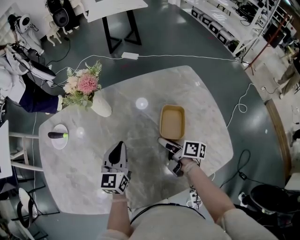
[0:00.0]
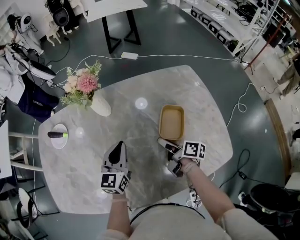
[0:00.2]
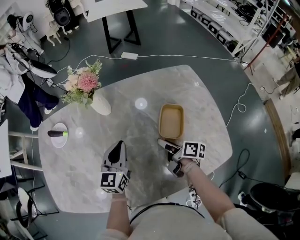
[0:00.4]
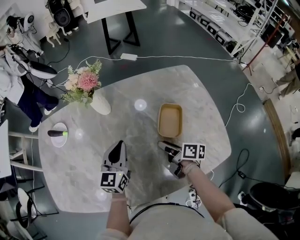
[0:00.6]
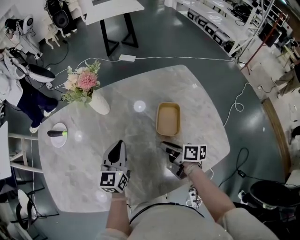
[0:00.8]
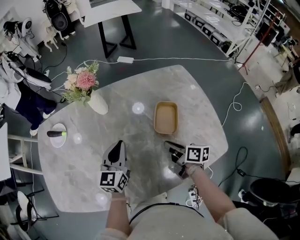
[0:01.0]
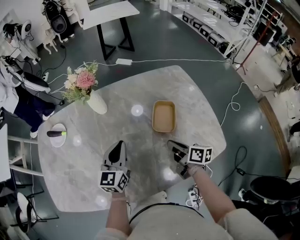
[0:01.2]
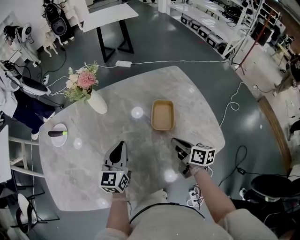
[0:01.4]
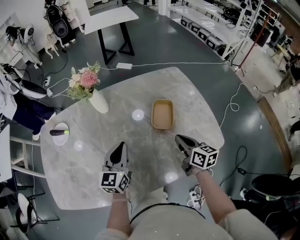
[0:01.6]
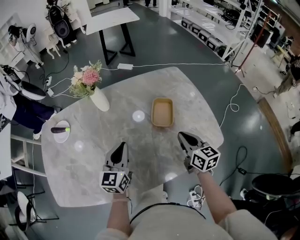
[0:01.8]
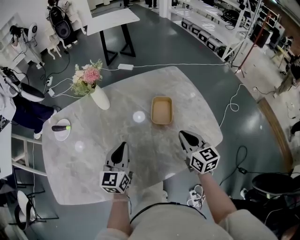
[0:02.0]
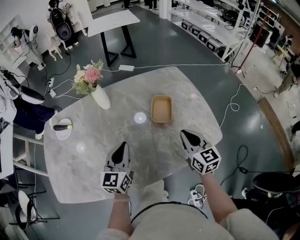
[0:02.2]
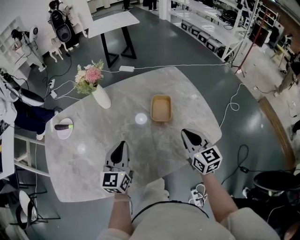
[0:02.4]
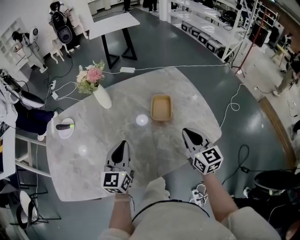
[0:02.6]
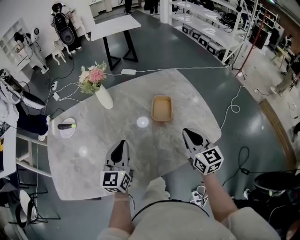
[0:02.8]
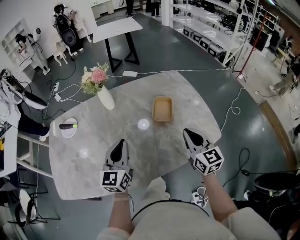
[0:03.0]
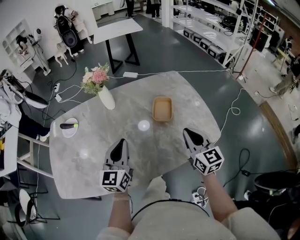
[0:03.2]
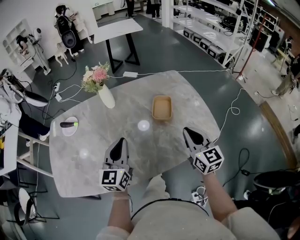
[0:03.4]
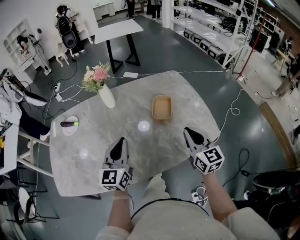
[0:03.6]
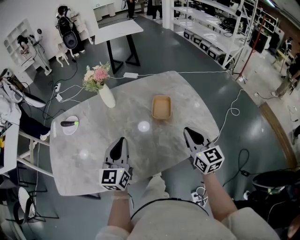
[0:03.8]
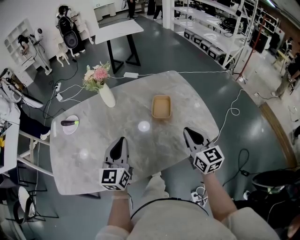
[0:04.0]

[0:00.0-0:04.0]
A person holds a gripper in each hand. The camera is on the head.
0:00.0 to 0:01.4: The left gripper moves backward, some 5 cm; the right gripper is displaced backward and to the right by some 10 cm, rotates about 30 degrees, and closes its fingers.
0:01.4 to 0:02.6: The left gripper moves backward, roughly 10 cm, while the right gripper travels upward and backward by approximately 15 cm, and rotates around the line of its fingers by approximately 40 degrees, counterclockwise from behind.
0:02.6 to 0:04.0: The grippers move only a little.

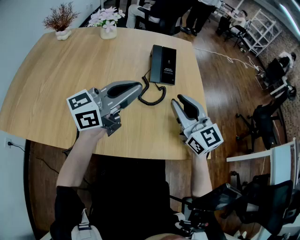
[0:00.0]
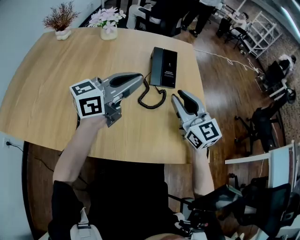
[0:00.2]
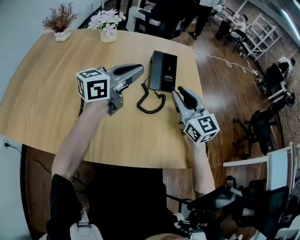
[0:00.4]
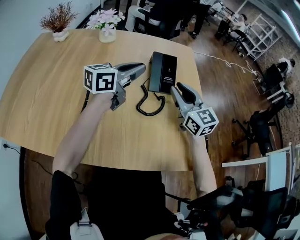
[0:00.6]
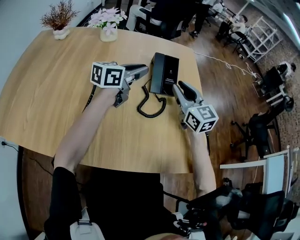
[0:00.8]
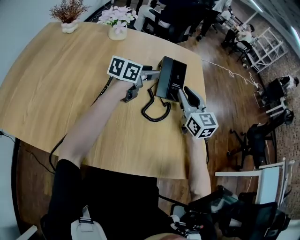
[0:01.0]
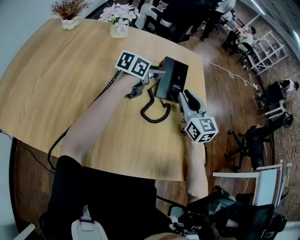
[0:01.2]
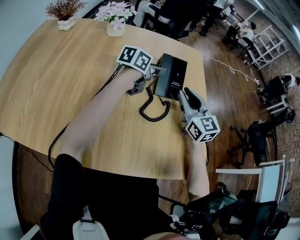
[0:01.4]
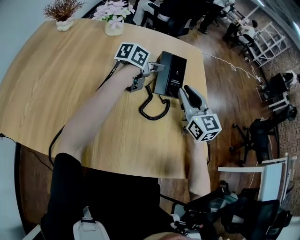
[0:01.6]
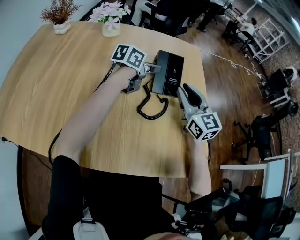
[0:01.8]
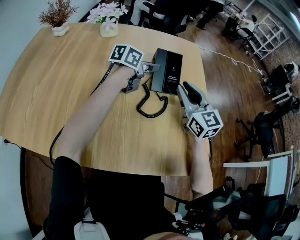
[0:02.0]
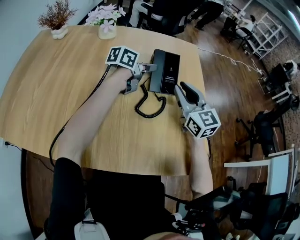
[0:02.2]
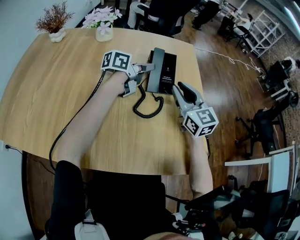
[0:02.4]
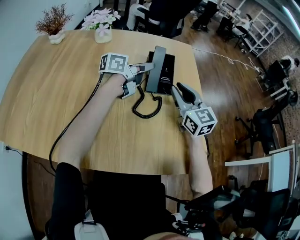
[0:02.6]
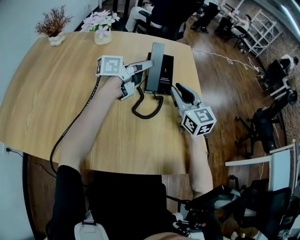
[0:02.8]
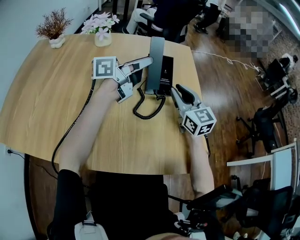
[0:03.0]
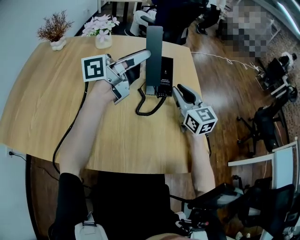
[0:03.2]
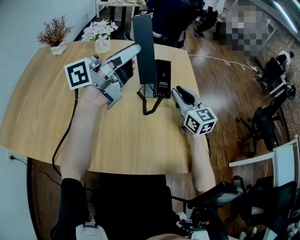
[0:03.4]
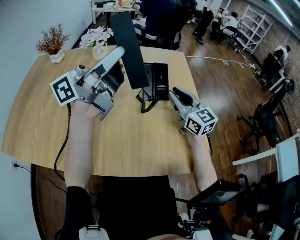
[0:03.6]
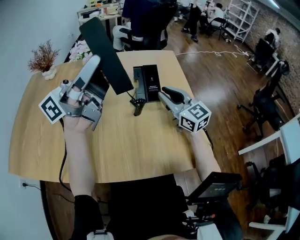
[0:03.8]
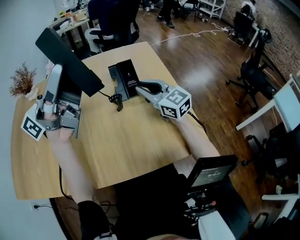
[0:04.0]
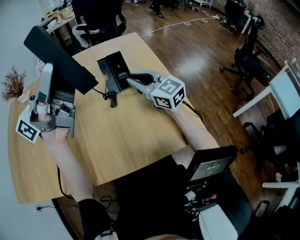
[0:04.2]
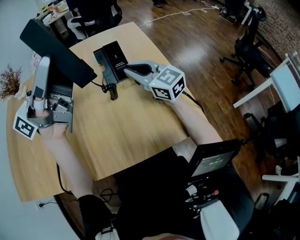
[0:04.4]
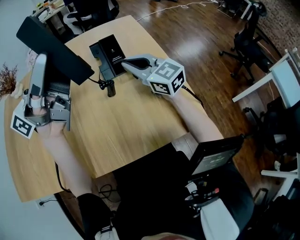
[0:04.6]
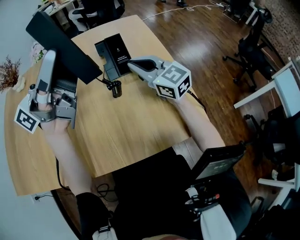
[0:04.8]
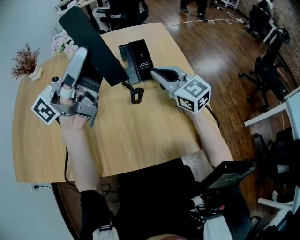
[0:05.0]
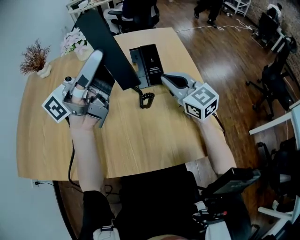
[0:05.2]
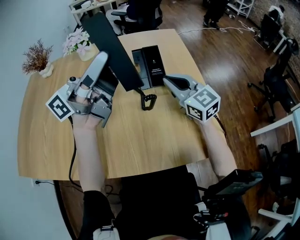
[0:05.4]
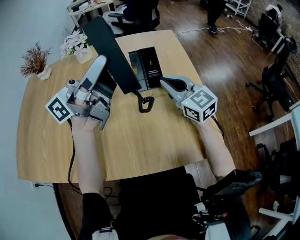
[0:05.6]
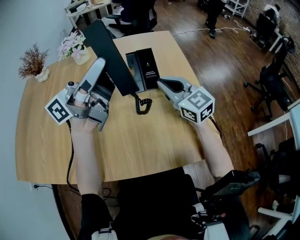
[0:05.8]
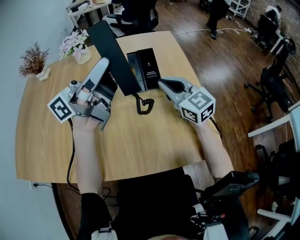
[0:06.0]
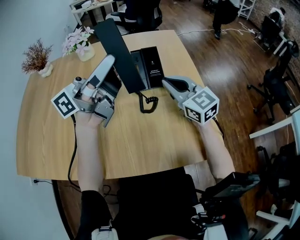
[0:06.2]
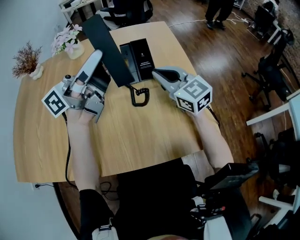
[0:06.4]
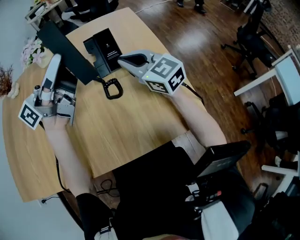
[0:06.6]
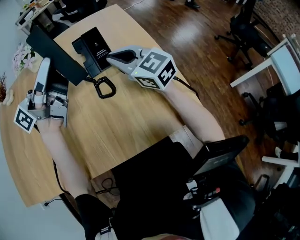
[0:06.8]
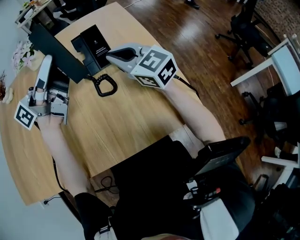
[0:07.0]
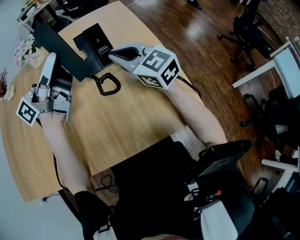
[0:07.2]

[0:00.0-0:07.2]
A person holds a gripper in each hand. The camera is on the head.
0:00.0 to 0:01.4: The left gripper travels forward and downward by approximately 30 cm, points its fingers some 30 degrees further downward, and opens, while the right gripper travels forward by about 15 cm.
0:01.4 to 0:02.8: The left gripper moves upward, about 5 cm, swivels about 30 degrees, and closes its fingers.
0:02.8 to 0:04.4: The left gripper is displaced upward and backward by roughly 30 cm, and points its fingers roughly 30 degrees further upward.
0:04.4 to 0:05.8: The left gripper travels downward by some 5 cm.
0:05.8 to 0:07.2: The left gripper travels downward by some 5 cm.

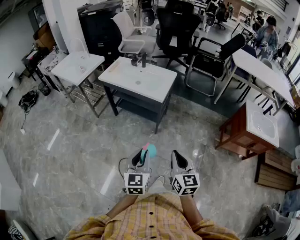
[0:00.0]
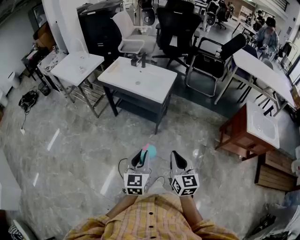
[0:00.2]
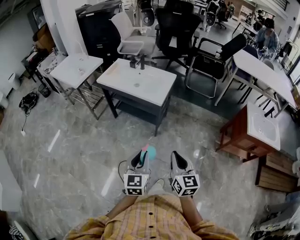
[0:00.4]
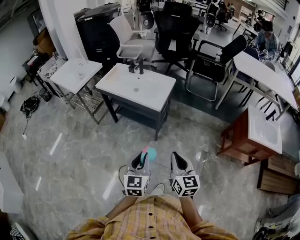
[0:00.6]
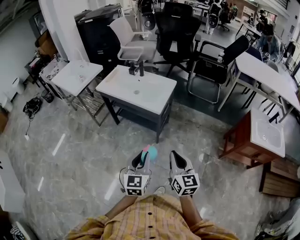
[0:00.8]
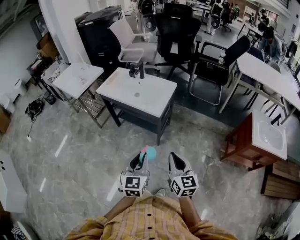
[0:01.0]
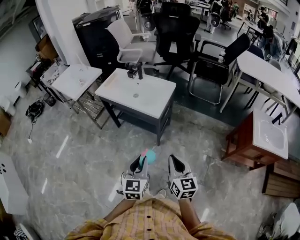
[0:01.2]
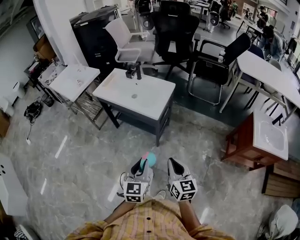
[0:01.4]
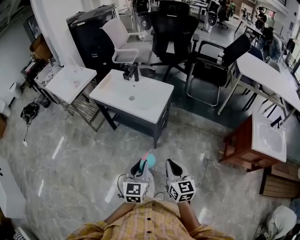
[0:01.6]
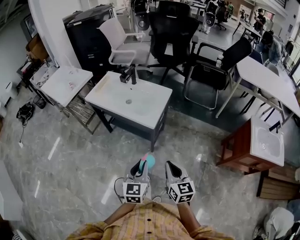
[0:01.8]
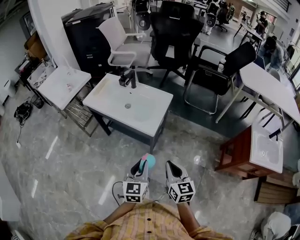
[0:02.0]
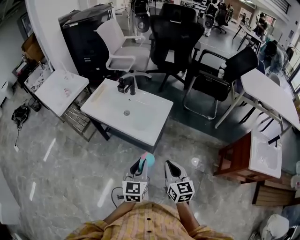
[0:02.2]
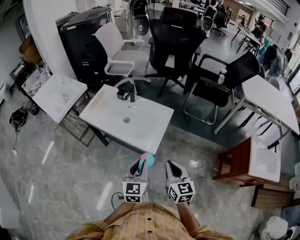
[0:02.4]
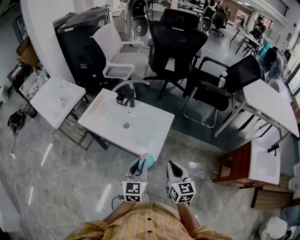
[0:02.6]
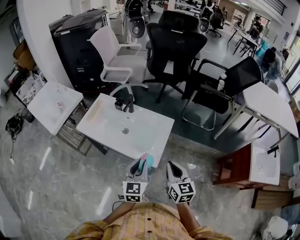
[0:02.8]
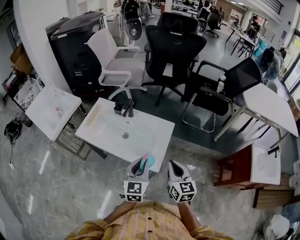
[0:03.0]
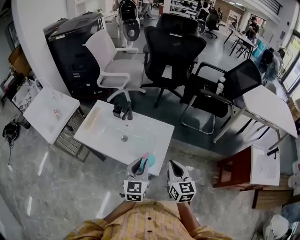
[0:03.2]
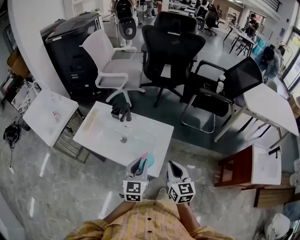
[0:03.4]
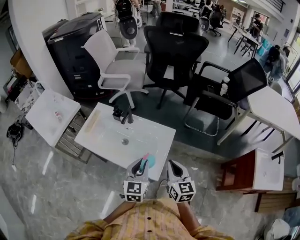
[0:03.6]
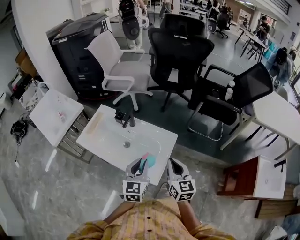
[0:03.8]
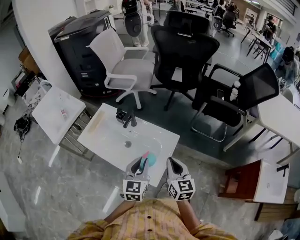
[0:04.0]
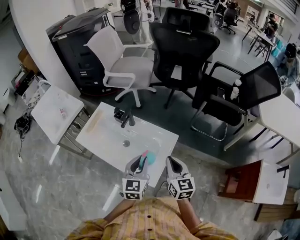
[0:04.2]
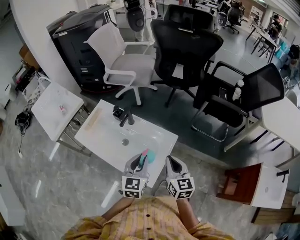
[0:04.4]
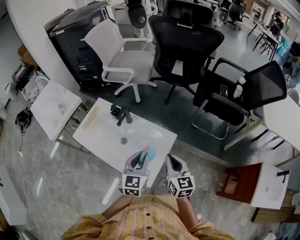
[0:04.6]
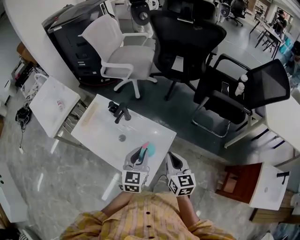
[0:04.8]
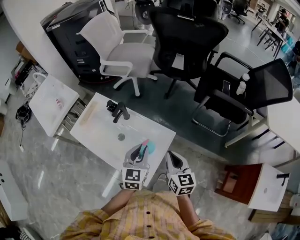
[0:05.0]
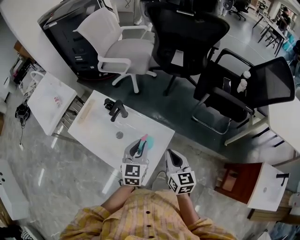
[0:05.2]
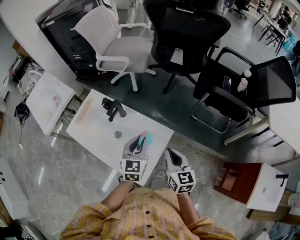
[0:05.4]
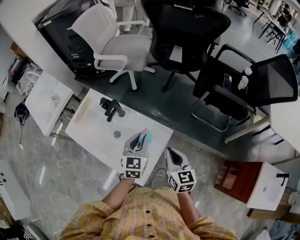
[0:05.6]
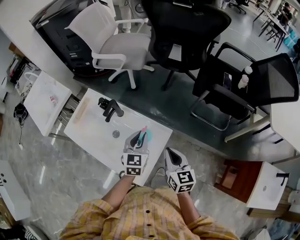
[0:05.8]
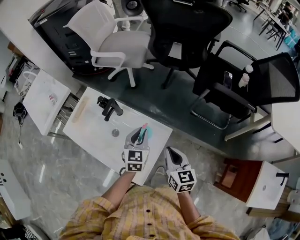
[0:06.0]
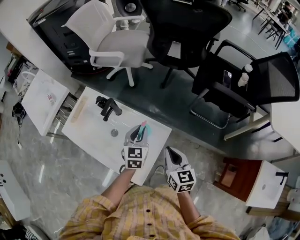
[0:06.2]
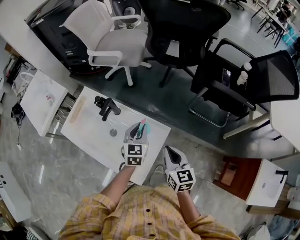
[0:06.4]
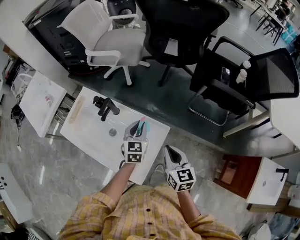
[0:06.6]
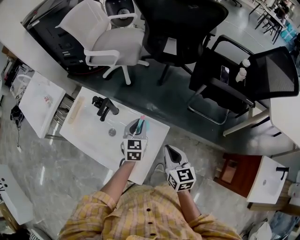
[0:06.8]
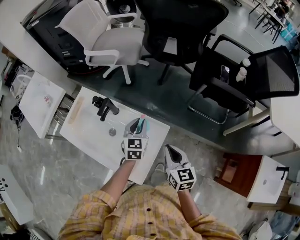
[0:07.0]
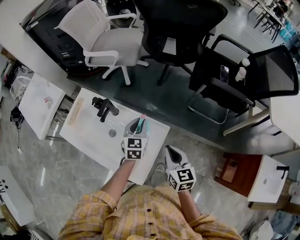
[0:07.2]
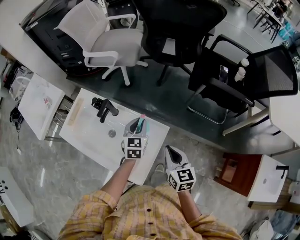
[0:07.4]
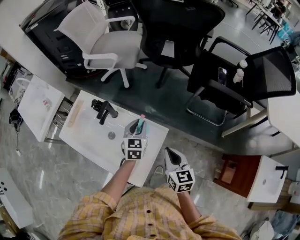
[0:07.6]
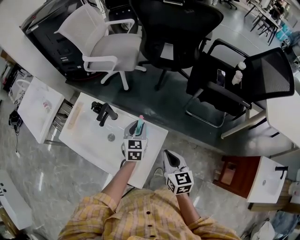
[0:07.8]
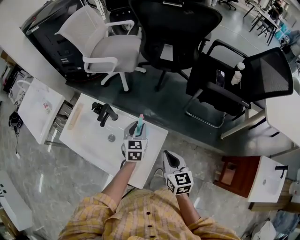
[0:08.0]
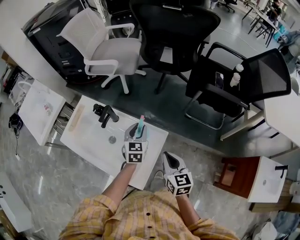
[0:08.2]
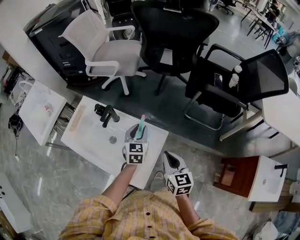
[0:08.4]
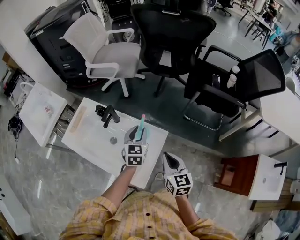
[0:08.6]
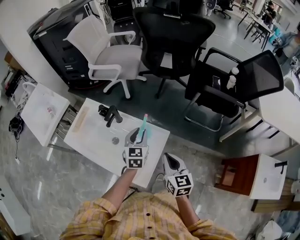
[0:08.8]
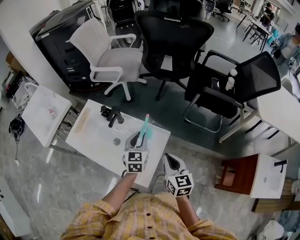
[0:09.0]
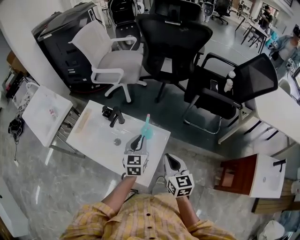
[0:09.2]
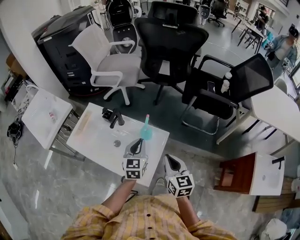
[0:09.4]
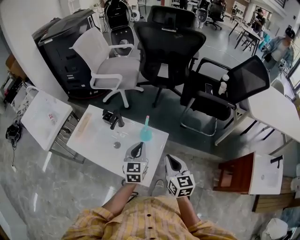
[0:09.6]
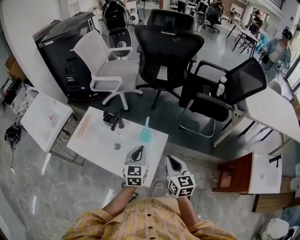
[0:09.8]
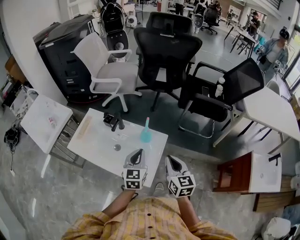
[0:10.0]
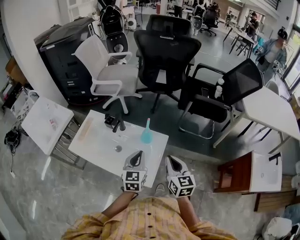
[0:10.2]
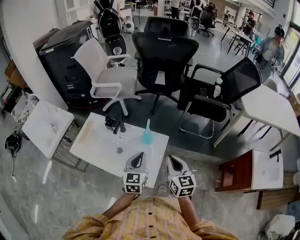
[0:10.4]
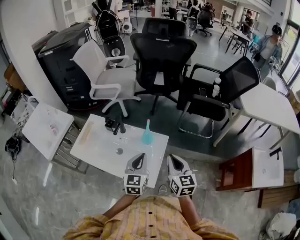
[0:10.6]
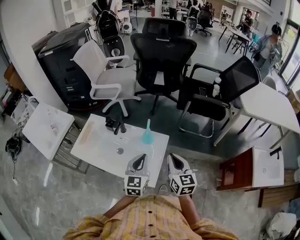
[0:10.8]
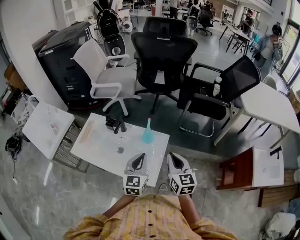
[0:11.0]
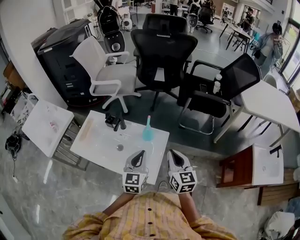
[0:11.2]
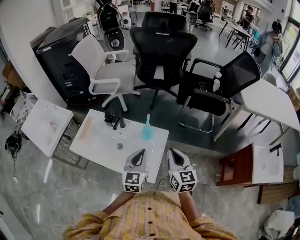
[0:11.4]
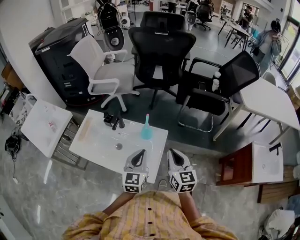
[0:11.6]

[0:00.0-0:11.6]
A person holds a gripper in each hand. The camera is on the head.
0:00.0 to 0:01.4: Both grippers travel together forward and to the right, some 15 cm.
0:01.4 to 0:02.8: Both grippers travel together forward, about 35 cm.
0:02.8 to 0:04.4: Both grippers move forward, some 20 cm.
0:04.4 to 0:05.8: The left gripper goes some 15 cm forward, downward and to the right. Meanwhile the right gripper heads forward, to the right and downward, covering approximately 10 cm.
0:05.8 to 0:07.2: The left gripper travels forward by approximately 5 cm.
0:07.2 to 0:08.8: The left gripper shifts by roughly 5 cm, while the right gripper changes place by roughly 5 cm.
0:08.8 to 0:10.2: The right gripper travels backward and upward by approximately 10 cm; the left gripper moves backward and upward, roughly 15 cm, and closes up.
0:10.2 to 0:11.6: There are only small adjustments of the grippers.

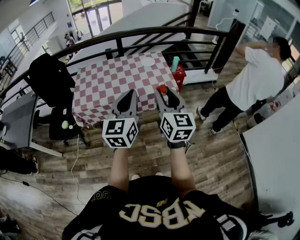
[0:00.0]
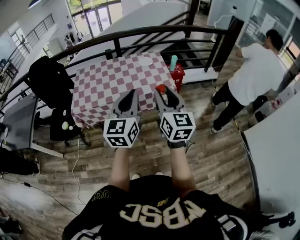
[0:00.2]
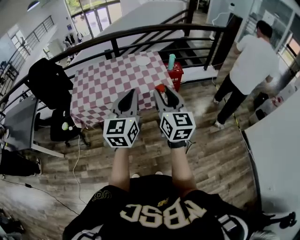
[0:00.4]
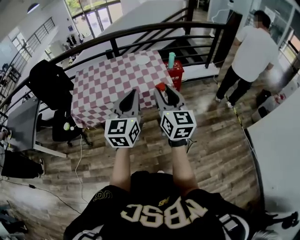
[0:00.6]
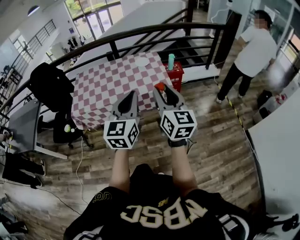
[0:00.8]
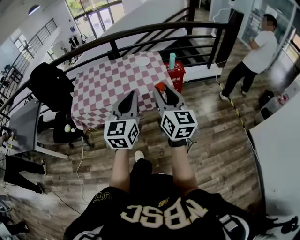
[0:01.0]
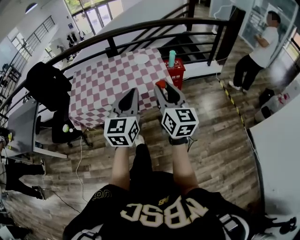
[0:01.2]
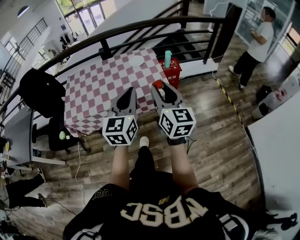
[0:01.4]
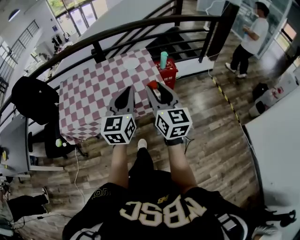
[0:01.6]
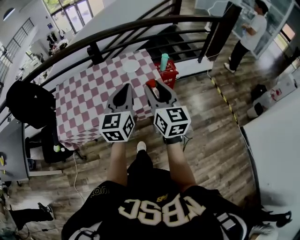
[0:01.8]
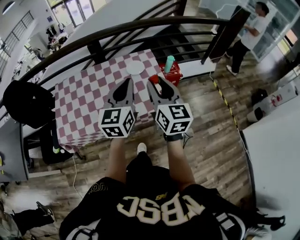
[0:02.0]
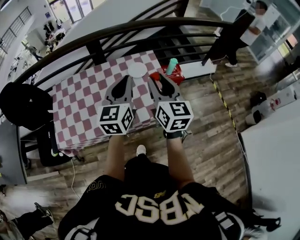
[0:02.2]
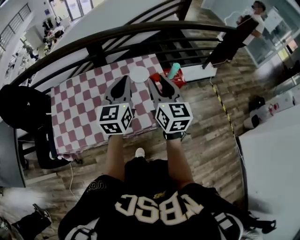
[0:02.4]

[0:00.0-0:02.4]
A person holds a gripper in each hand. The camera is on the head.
0:00.0 to 0:01.2: Both grippers travel together to the right, about 10 cm.
0:01.2 to 0:02.4: Both grippers are carried forward, some 40 cm.
